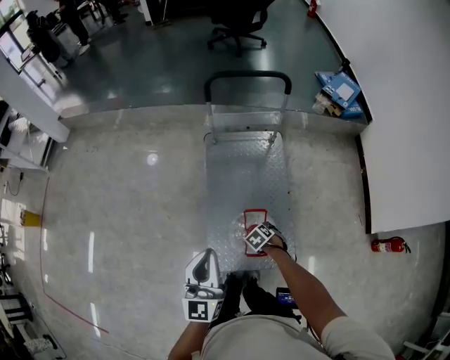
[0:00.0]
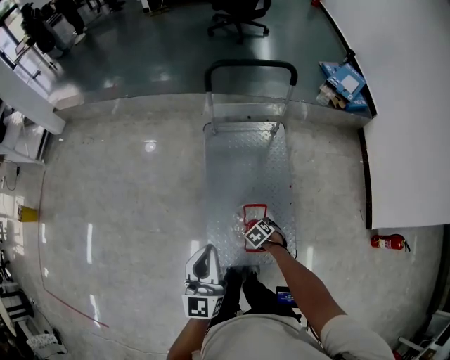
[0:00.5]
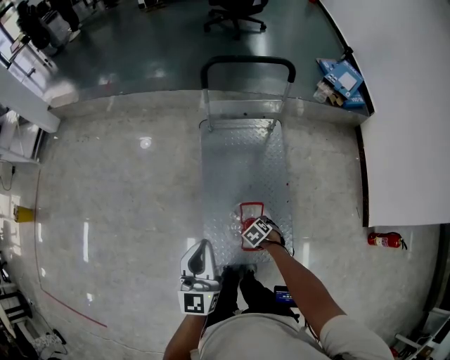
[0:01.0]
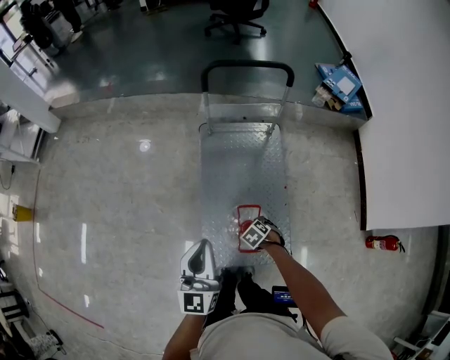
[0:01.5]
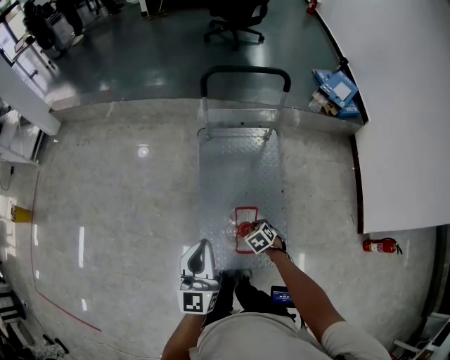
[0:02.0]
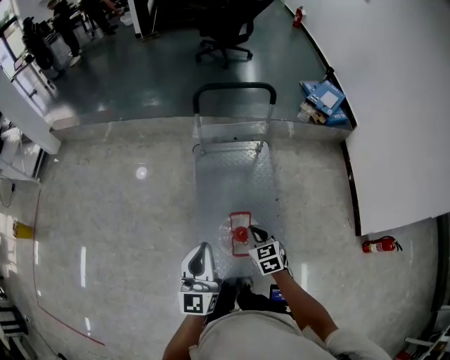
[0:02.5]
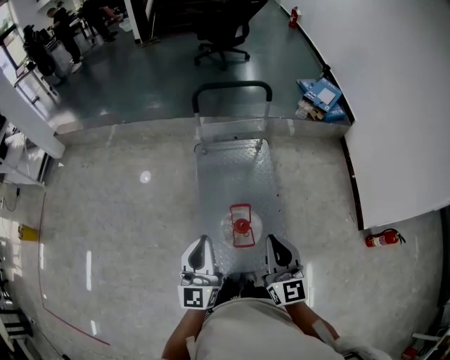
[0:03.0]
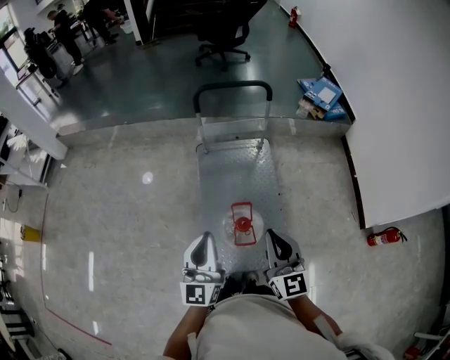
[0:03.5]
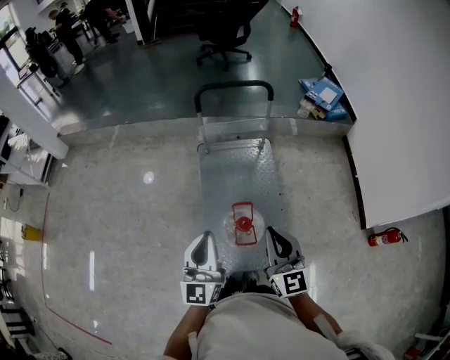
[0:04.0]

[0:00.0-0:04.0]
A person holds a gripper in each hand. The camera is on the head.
0:00.0 to 0:02.0: The right gripper changes place by approximately 5 cm, and closes.
0:02.0 to 0:04.0: The left gripper shifts about 10 cm upward and backward; the right gripper goes approximately 35 cm upward, and tilts its fingers roughly 70 degrees upward.

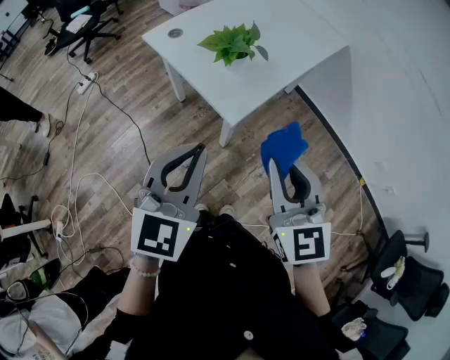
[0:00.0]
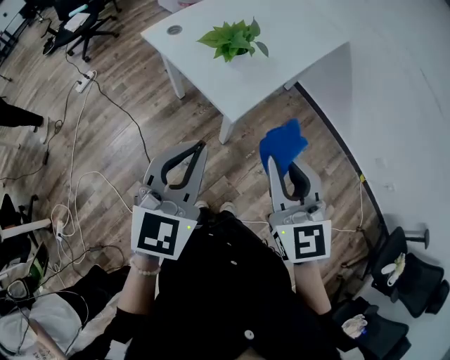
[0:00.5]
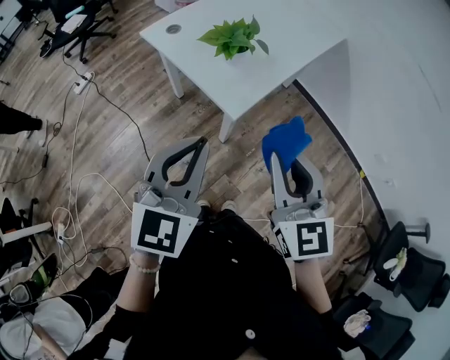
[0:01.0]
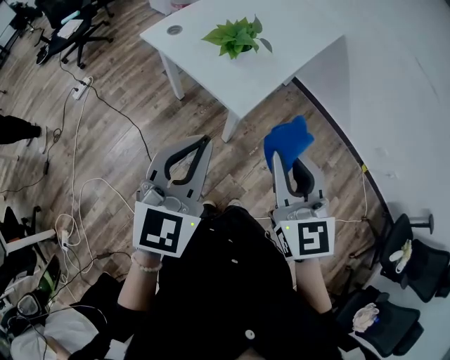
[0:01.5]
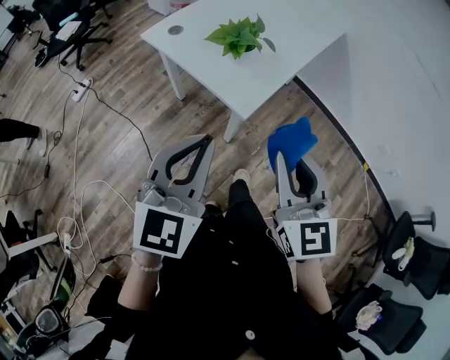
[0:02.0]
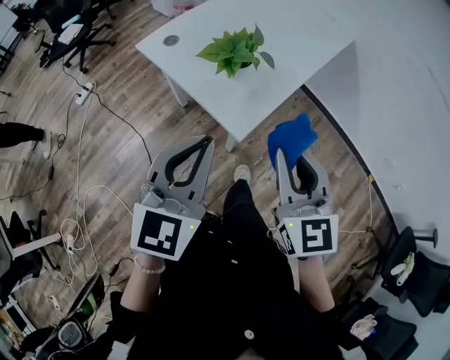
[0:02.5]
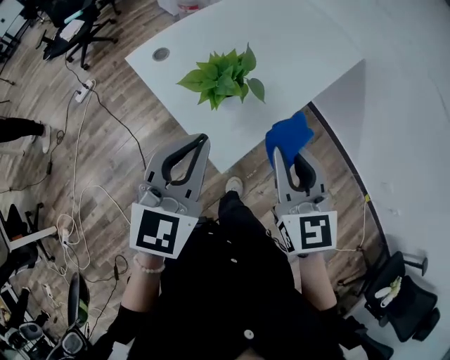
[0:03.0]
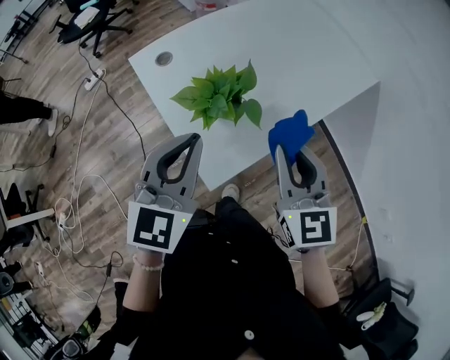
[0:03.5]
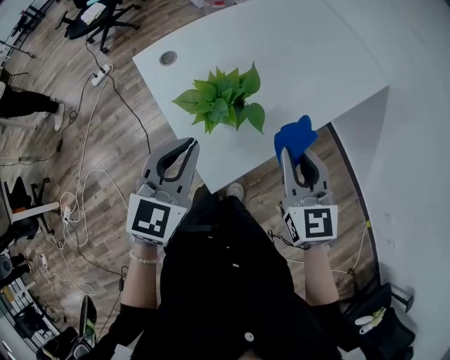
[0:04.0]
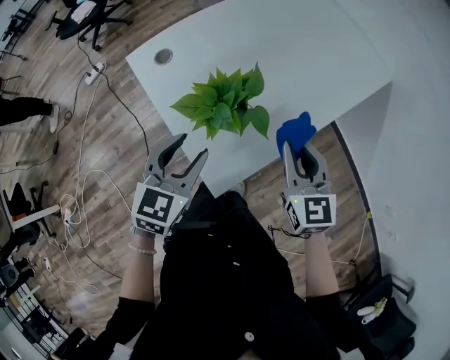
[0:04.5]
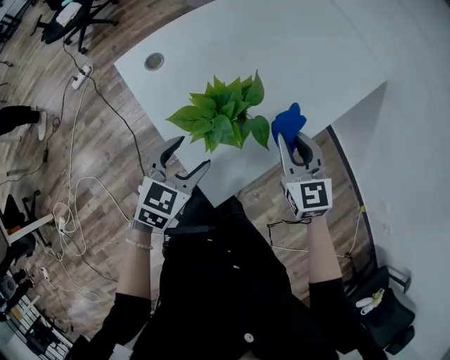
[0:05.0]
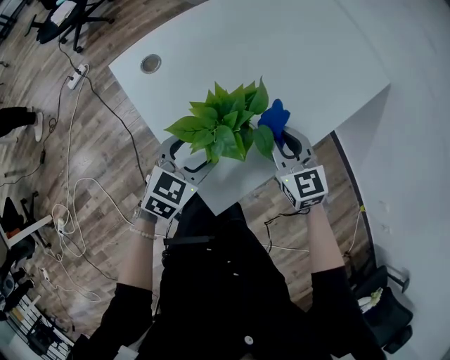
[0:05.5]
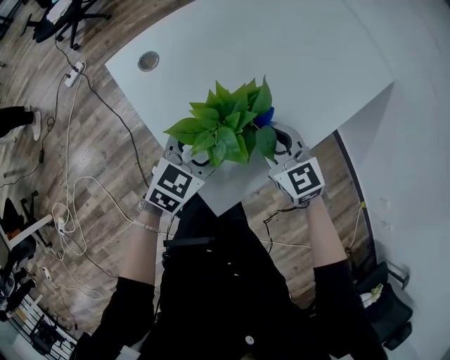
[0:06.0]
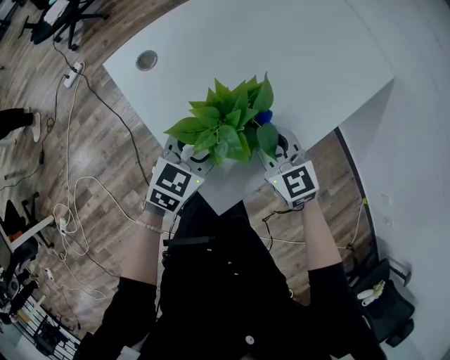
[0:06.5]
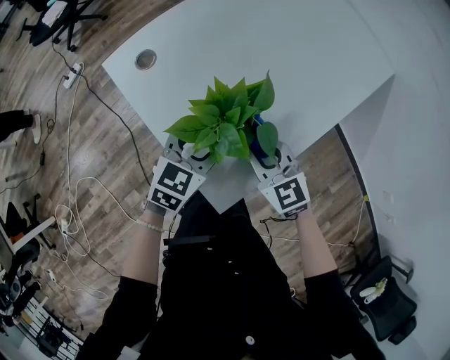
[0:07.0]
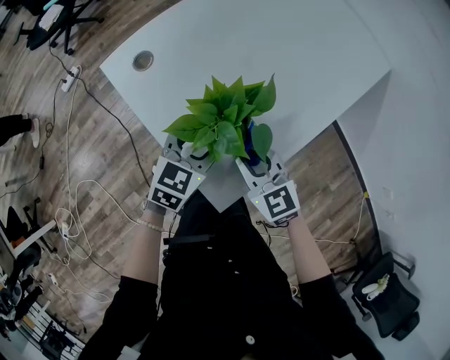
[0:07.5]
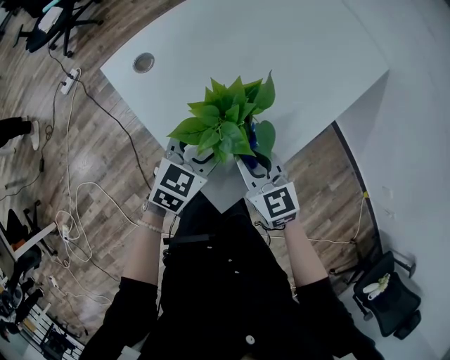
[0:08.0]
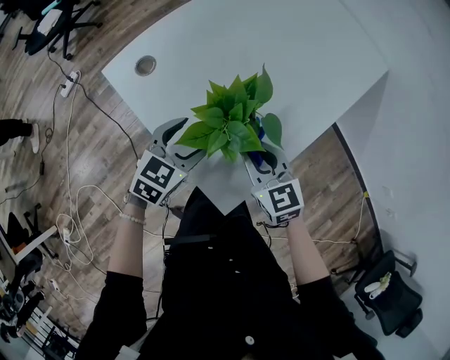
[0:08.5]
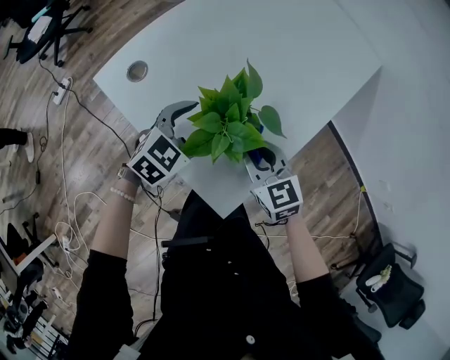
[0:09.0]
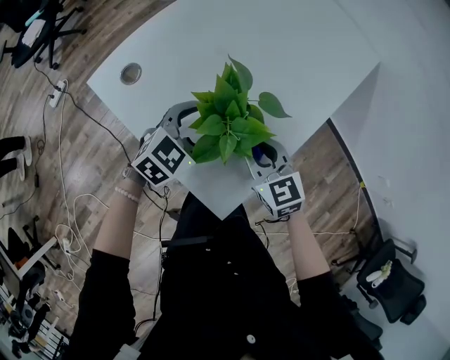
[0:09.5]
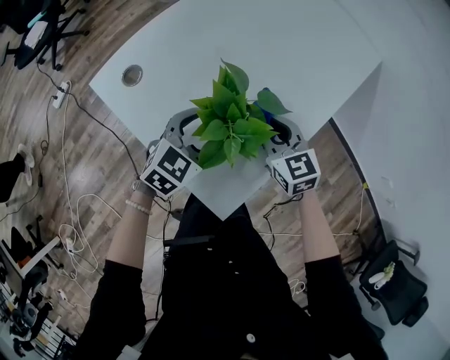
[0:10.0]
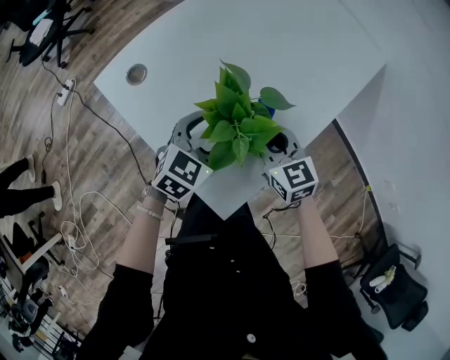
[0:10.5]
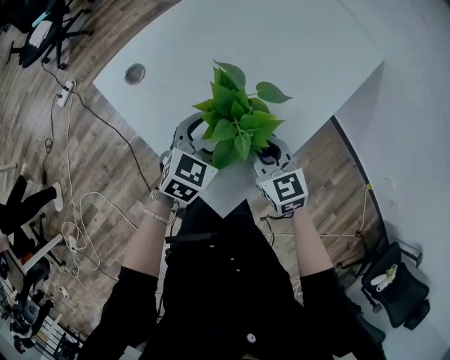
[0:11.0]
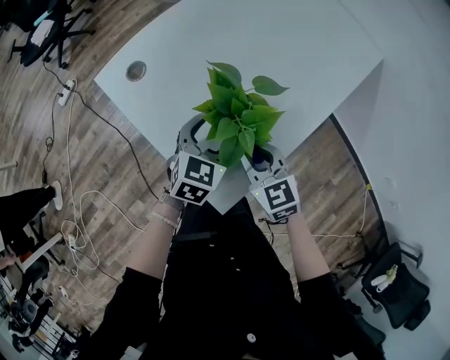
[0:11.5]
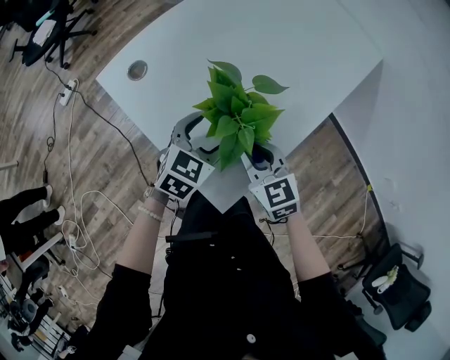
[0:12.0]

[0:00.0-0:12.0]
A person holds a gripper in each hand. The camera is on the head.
0:00.0 to 0:02.0: The grippers stay close to where they were, moving slightly.
0:02.0 to 0:04.0: Both grippers travel together forward, roughly 30 cm. The left gripper turns by roughly 20 degrees.
0:04.0 to 0:06.0: The right gripper travels downward, forward and to the left by about 20 cm, and turns by roughly 20 degrees. Meanwhile the left gripper heads downward and forward, covering approximately 20 cm, swivels approximately 30 degrees, and opens its fingers.
0:06.0 to 0:08.0: The right gripper goes approximately 5 cm backward.
0:08.0 to 0:10.0: The right gripper goes about 10 cm forward and to the right.
0:10.0 to 0:12.0: The right gripper shifts roughly 10 cm backward.

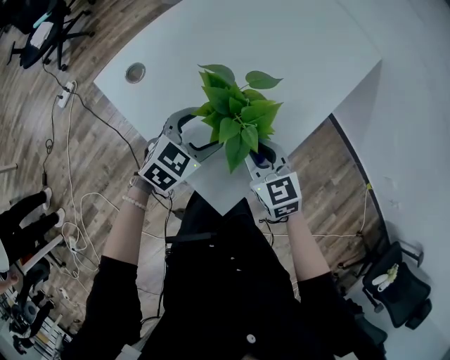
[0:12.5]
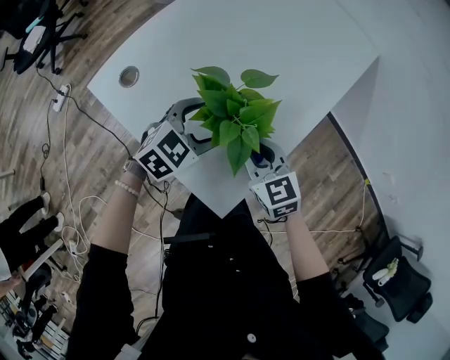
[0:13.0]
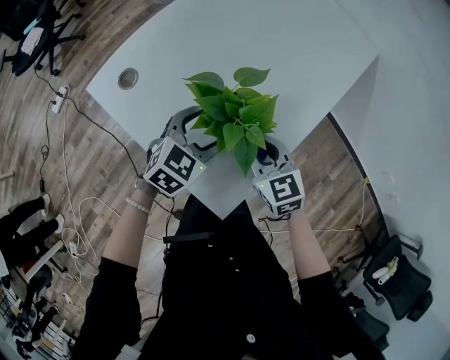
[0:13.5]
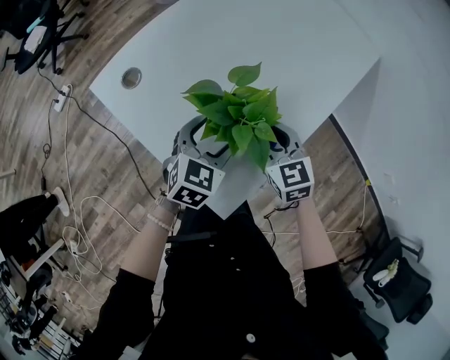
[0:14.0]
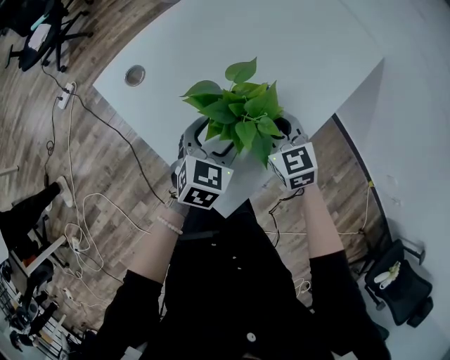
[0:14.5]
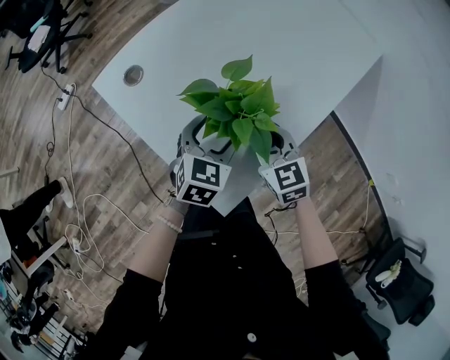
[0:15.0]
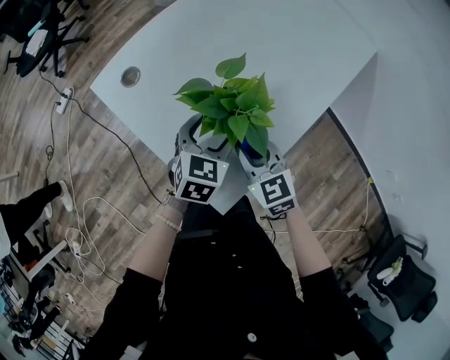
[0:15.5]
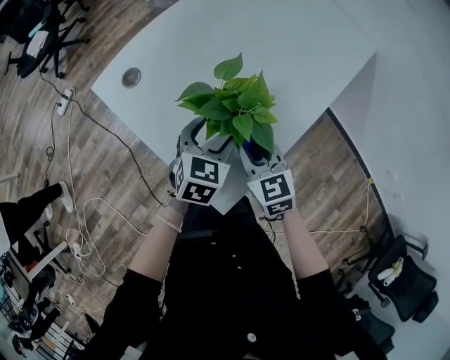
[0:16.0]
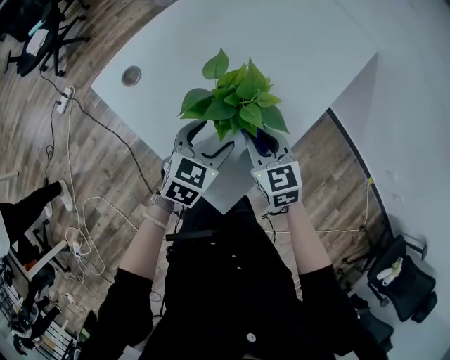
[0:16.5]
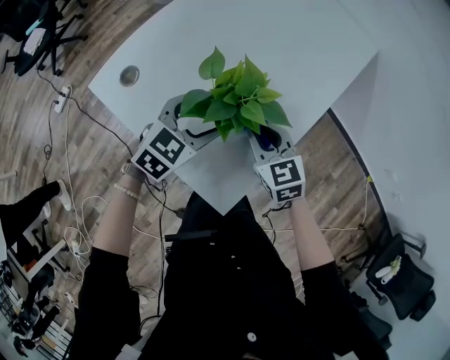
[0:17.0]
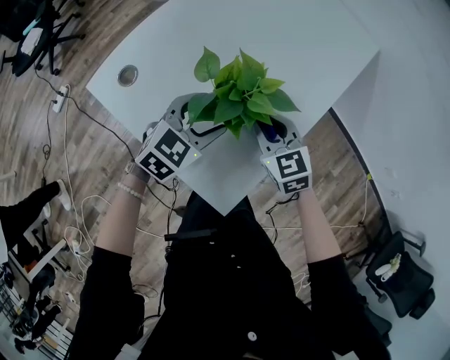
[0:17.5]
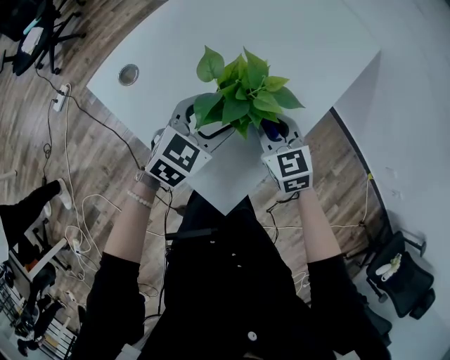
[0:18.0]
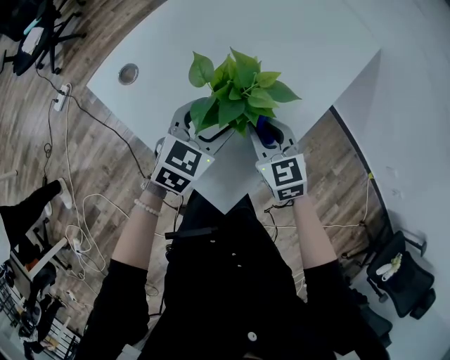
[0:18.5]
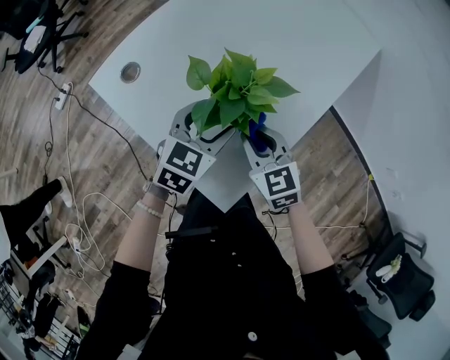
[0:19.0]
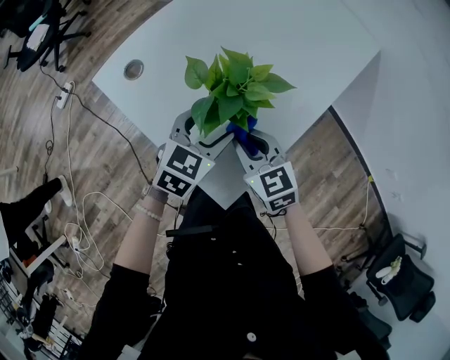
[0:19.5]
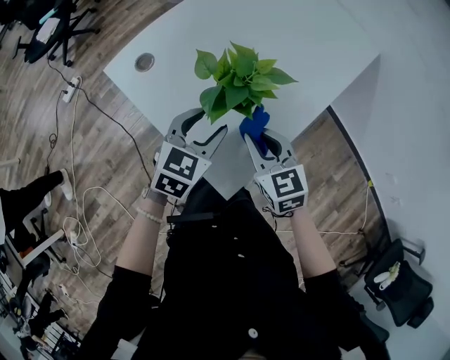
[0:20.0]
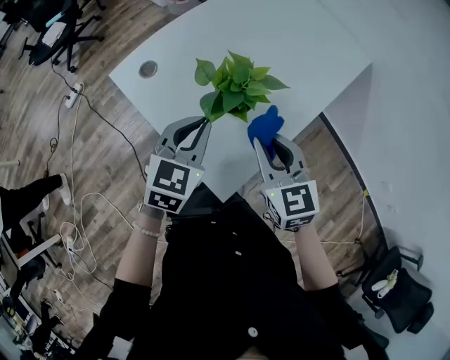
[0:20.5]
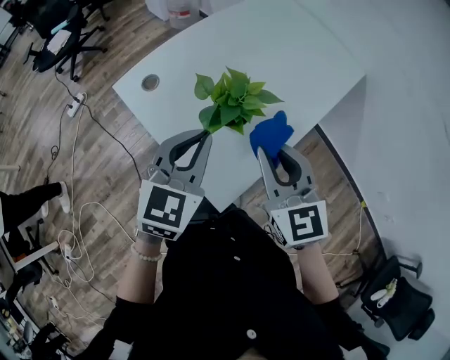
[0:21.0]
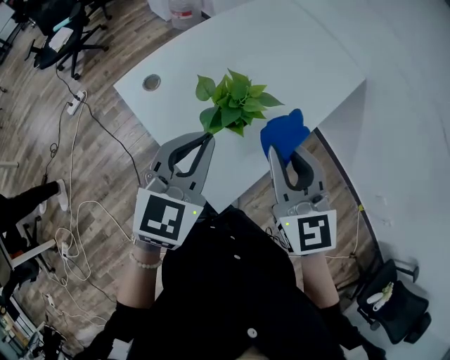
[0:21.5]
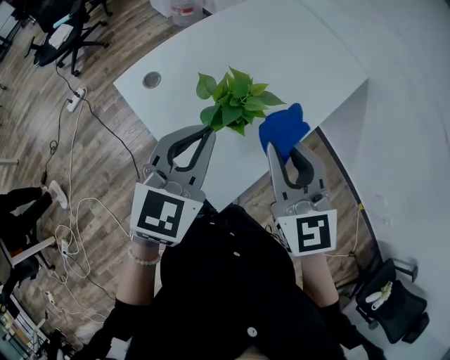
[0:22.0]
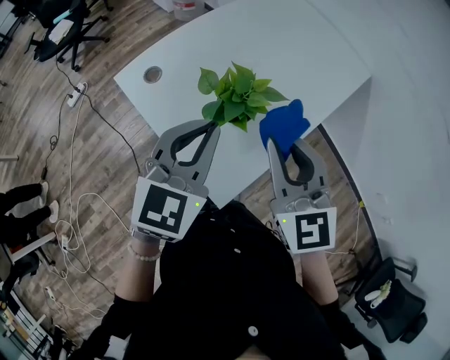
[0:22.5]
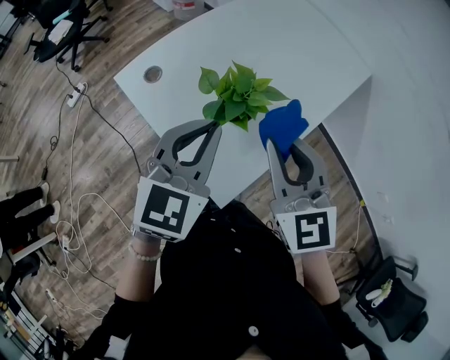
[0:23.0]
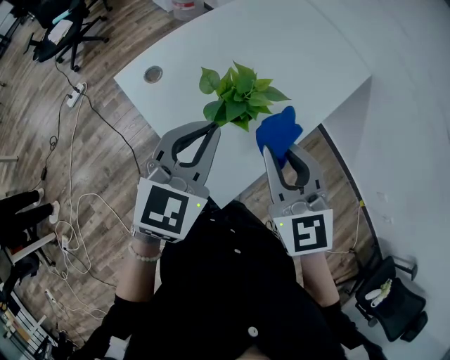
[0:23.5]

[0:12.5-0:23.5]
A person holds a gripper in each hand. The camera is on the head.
0:12.5 to 0:14.5: The left gripper swivels roughly 20 degrees. Meanwhile the right gripper shifts roughly 10 cm forward.
0:14.5 to 0:16.0: The right gripper travels backward by about 5 cm.
0:16.0 to 0:18.0: The right gripper moves forward, about 5 cm, while the left gripper changes its angle by some 20 degrees.
0:18.0 to 0:20.0: The grippers both shift backward by roughly 5 cm.
0:20.0 to 0:21.5: Both grippers travel together upward, approximately 20 cm. The left gripper closes up. Meanwhile the right gripper swivels about 20 degrees.
0:21.5 to 0:23.5: The grippers stay close to where they were, moving slightly.
